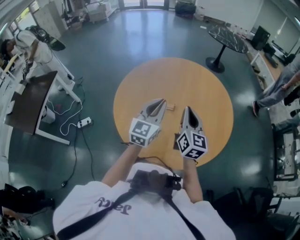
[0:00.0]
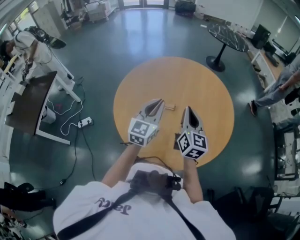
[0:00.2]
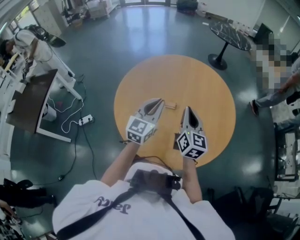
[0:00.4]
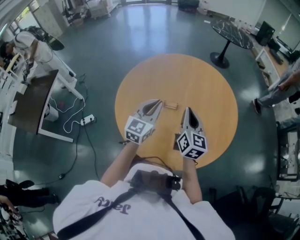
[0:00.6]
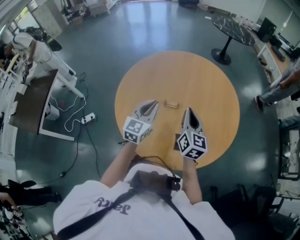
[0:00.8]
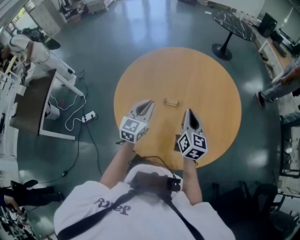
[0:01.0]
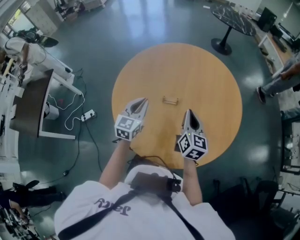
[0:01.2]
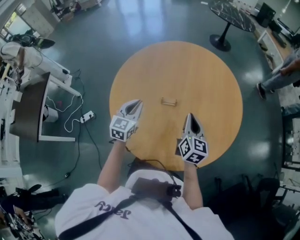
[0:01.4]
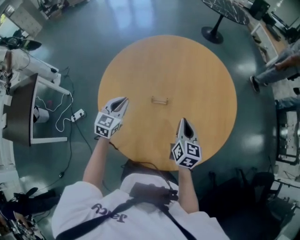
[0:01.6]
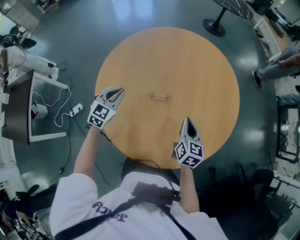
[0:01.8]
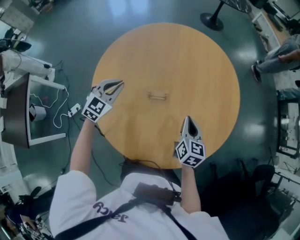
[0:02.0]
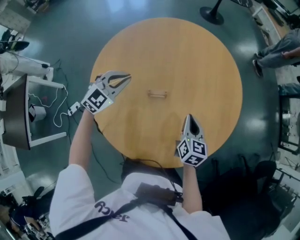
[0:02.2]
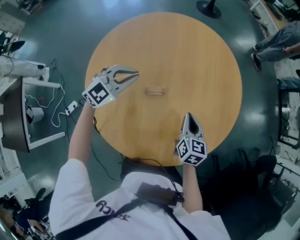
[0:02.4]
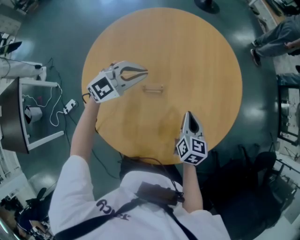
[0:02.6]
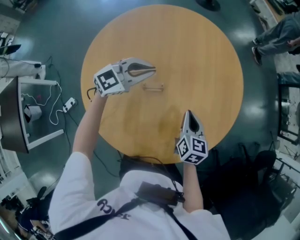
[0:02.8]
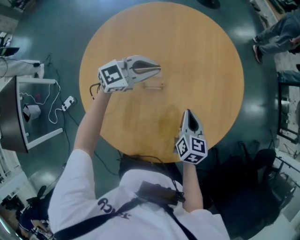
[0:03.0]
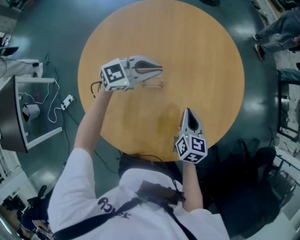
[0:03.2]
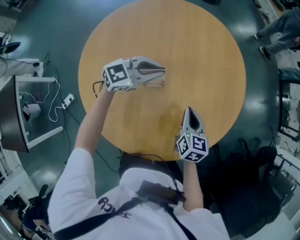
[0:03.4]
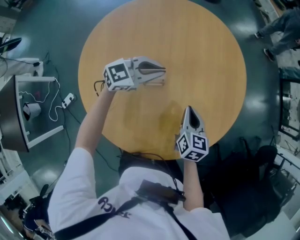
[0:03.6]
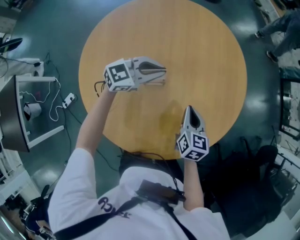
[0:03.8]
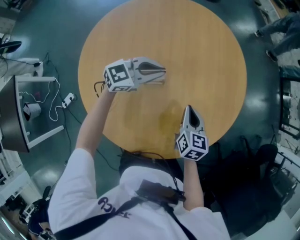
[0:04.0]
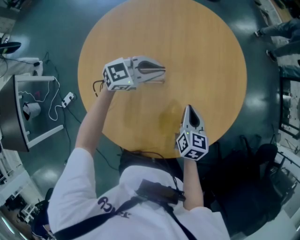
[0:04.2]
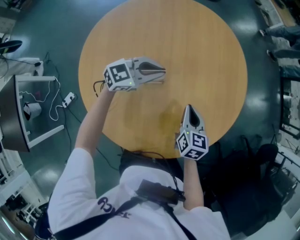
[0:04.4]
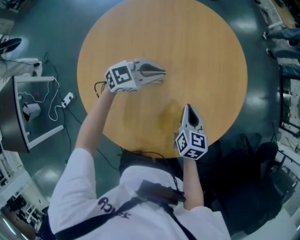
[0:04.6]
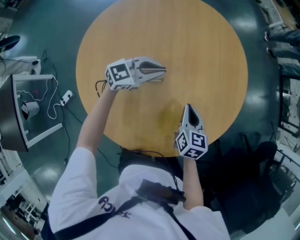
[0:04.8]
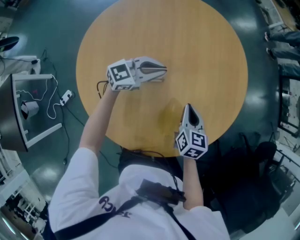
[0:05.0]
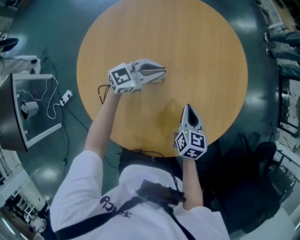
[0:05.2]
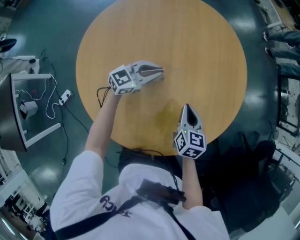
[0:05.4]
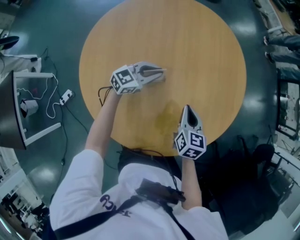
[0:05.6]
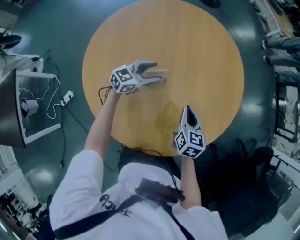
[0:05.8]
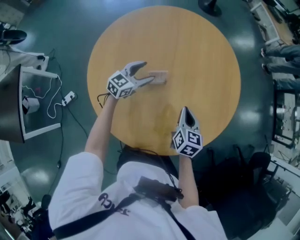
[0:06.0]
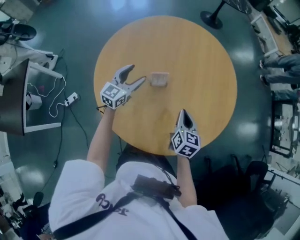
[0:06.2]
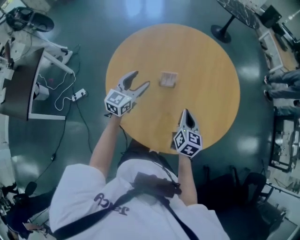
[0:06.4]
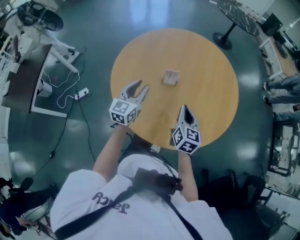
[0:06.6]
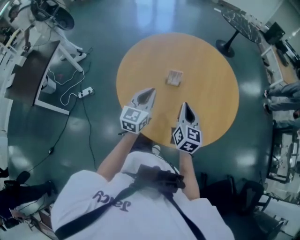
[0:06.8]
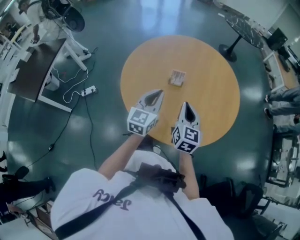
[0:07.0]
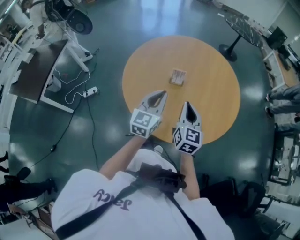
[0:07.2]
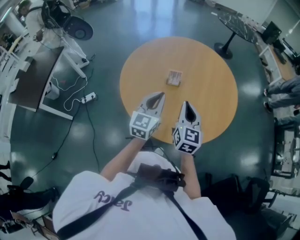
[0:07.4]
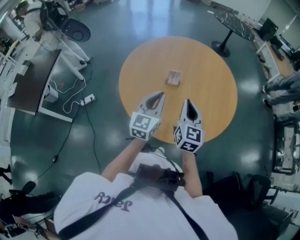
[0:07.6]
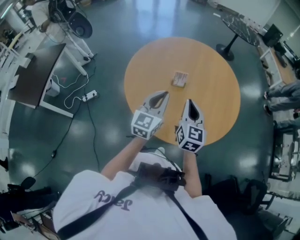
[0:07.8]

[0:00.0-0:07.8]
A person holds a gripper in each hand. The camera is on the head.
0:00.0 to 0:01.6: The right gripper is displaced downward by approximately 15 cm, and turns by some 20 degrees. The left gripper shifts some 20 cm downward and to the left, and changes its angle by roughly 30 degrees.
0:01.6 to 0:03.2: The right gripper shifts some 5 cm downward, while the left gripper ends up some 20 cm from where it was, and swivels some 60 degrees.
0:03.2 to 0:04.6: There are only small adjustments of the grippers.
0:04.6 to 0:06.2: The left gripper moves approximately 15 cm, rotates approximately 50 degrees, and opens up.
0:06.2 to 0:07.8: The left gripper moves backward and upward, approximately 25 cm, rotates roughly 20 degrees, and closes its fingers; the right gripper shifts some 20 cm upward, to the left and backward, and rotates about 30 degrees.

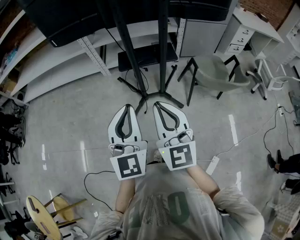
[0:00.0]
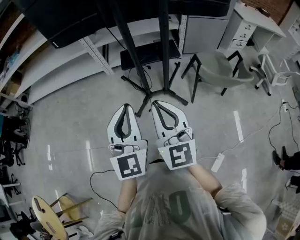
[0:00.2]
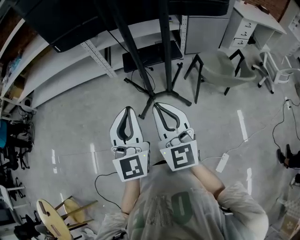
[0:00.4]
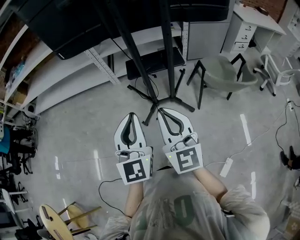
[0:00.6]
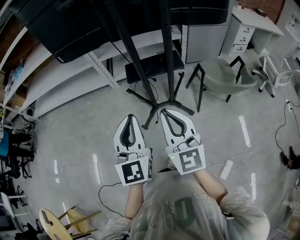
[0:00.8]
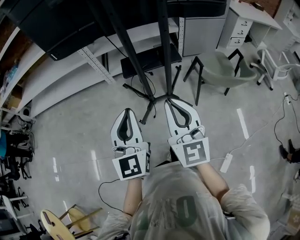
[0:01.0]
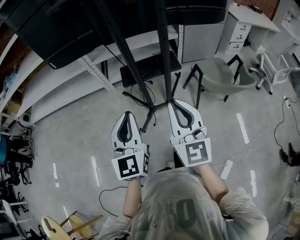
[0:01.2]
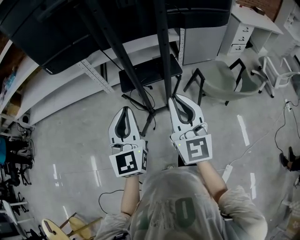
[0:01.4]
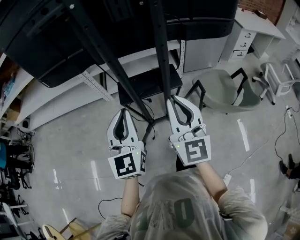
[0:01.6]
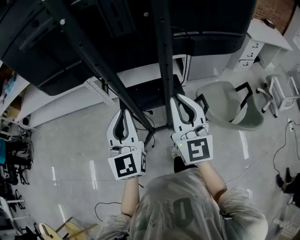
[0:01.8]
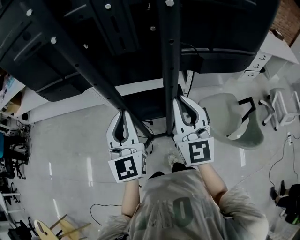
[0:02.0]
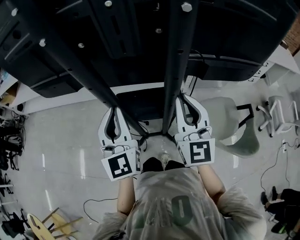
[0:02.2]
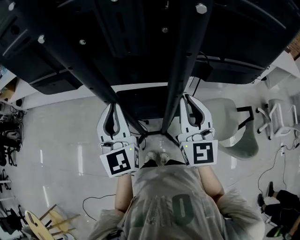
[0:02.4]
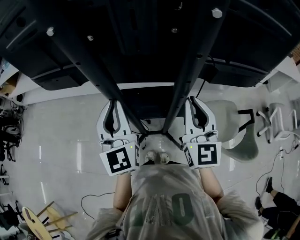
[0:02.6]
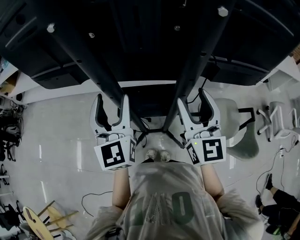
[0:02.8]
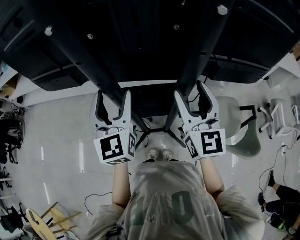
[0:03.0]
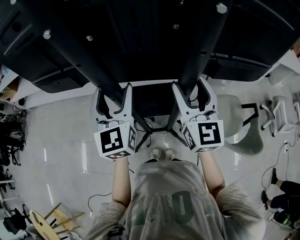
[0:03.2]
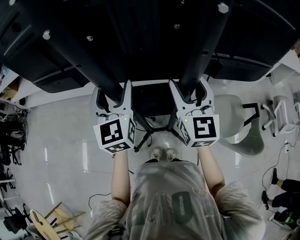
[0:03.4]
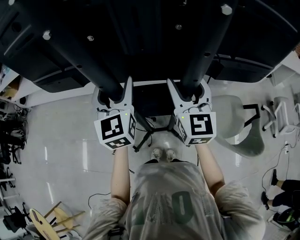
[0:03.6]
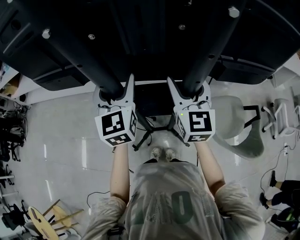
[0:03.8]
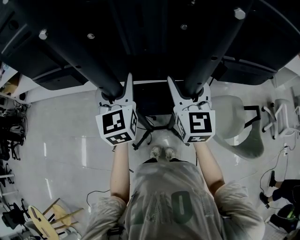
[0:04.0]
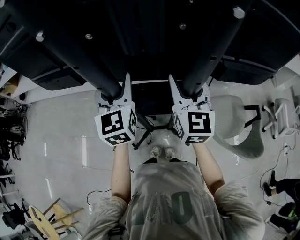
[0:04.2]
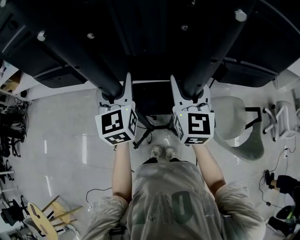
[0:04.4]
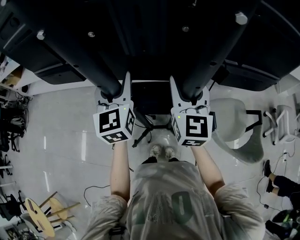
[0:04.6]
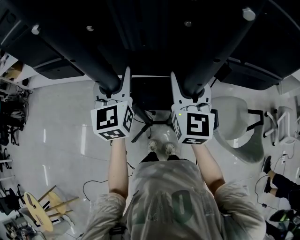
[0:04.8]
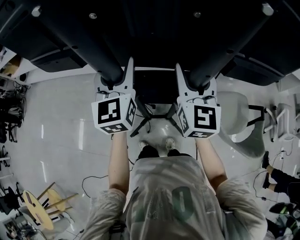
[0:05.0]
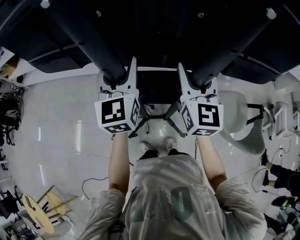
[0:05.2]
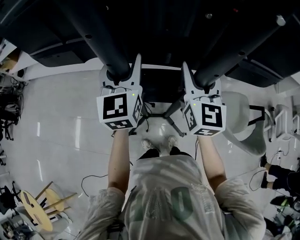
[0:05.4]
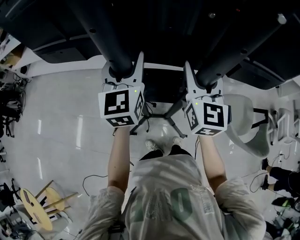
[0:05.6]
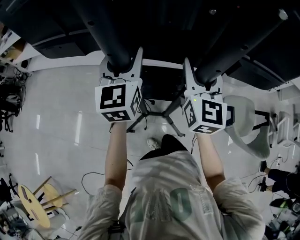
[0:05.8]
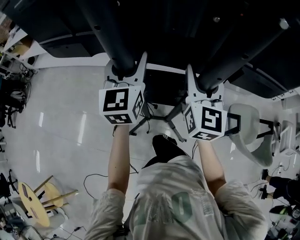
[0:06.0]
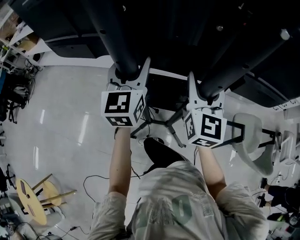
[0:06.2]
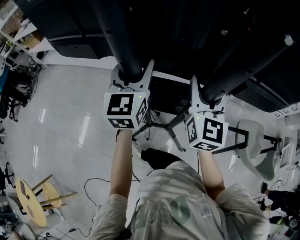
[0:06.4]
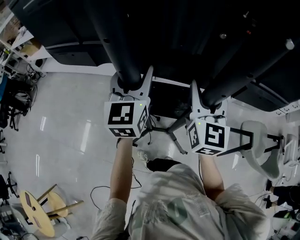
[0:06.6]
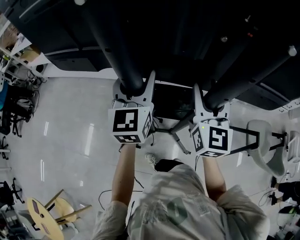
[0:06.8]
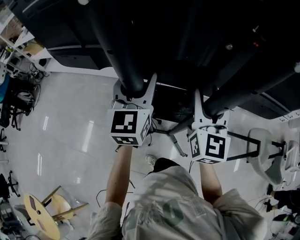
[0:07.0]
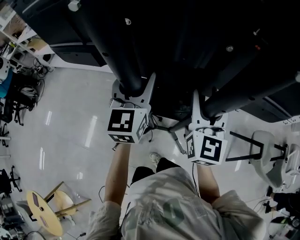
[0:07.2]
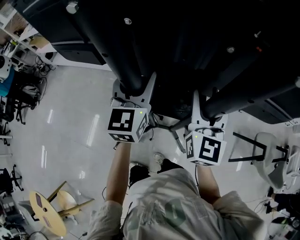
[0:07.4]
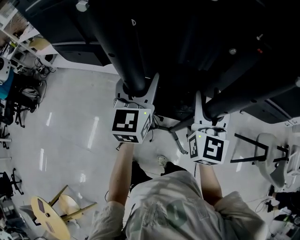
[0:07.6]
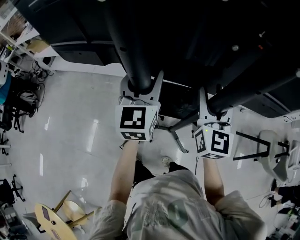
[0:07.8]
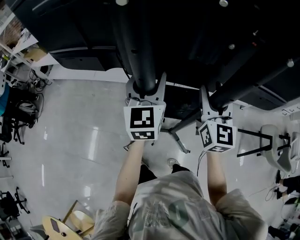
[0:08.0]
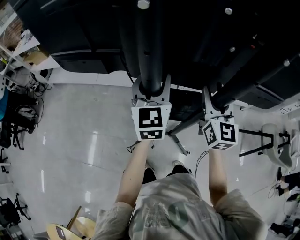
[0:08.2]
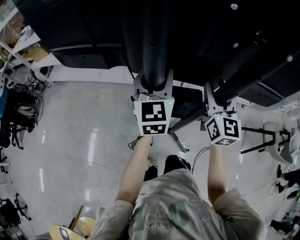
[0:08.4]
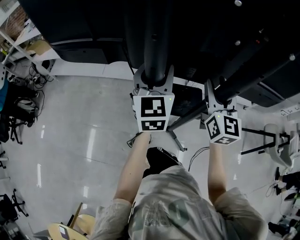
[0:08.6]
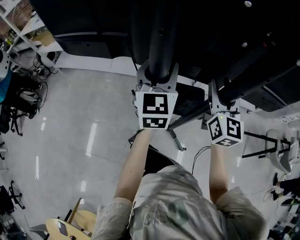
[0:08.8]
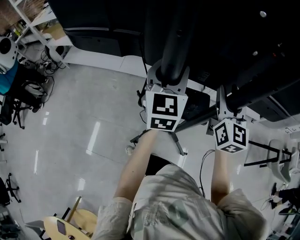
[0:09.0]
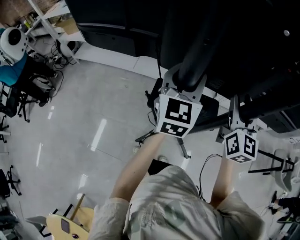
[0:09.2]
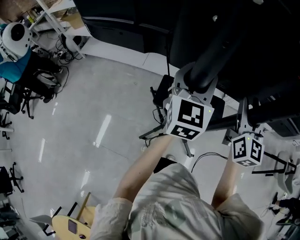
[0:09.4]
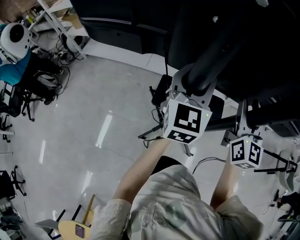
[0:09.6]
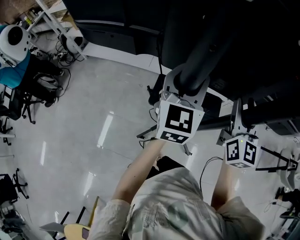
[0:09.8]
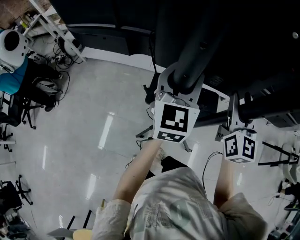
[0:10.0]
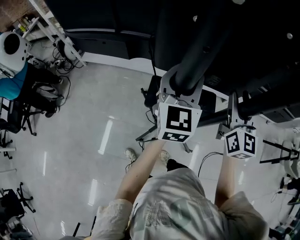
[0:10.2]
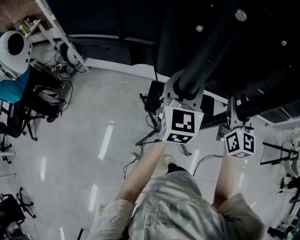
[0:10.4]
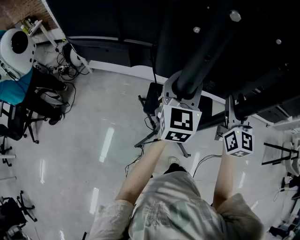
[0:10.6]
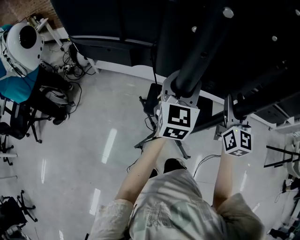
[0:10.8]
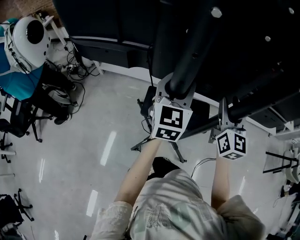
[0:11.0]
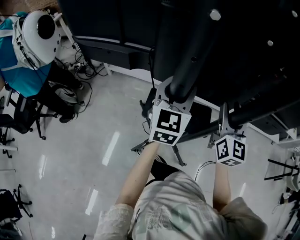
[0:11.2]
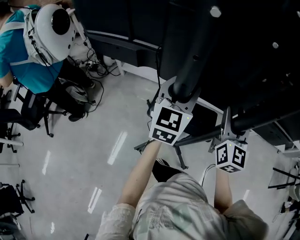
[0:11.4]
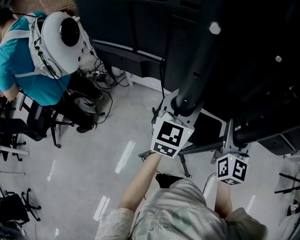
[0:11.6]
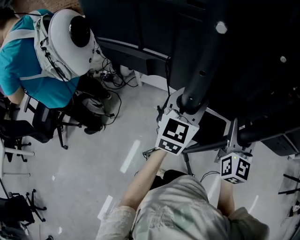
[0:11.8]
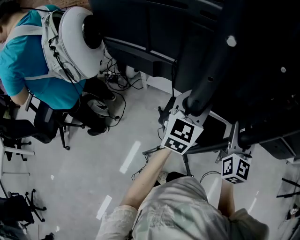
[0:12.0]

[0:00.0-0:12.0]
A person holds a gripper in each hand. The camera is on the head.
0:00.0 to 0:01.6: The left gripper goes some 20 cm forward; the right gripper goes about 25 cm forward and to the right.
0:01.6 to 0:03.0: The two grippers go roughly 25 cm forward. The left gripper opens up. The right gripper opens up.
0:03.0 to 0:04.4: The grippers both shift forward by approximately 5 cm.
0:04.4 to 0:06.0: The grippers both shift to the left by approximately 20 cm.
0:06.0 to 0:07.6: The grippers both shift to the left by some 35 cm.
0:07.6 to 0:09.0: Both grippers travel together to the left, approximately 30 cm.
0:09.0 to 0:10.4: Both grippers move to the left, some 35 cm.
0:10.4 to 0:12.0: The two grippers travel together, to the left, approximately 50 cm.

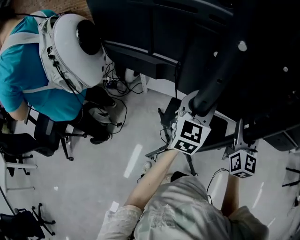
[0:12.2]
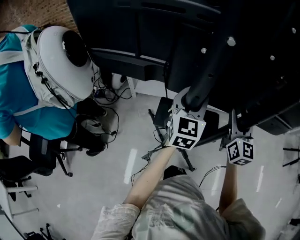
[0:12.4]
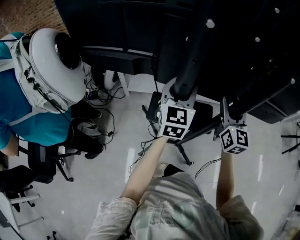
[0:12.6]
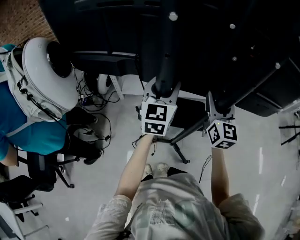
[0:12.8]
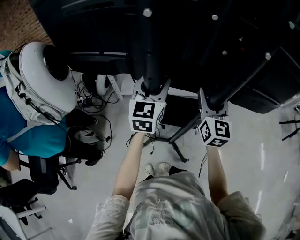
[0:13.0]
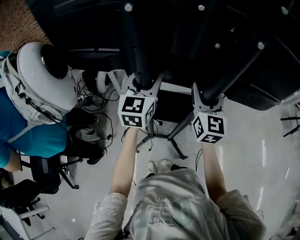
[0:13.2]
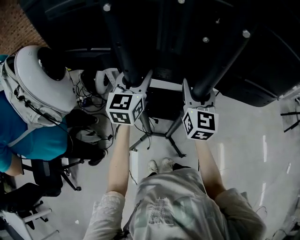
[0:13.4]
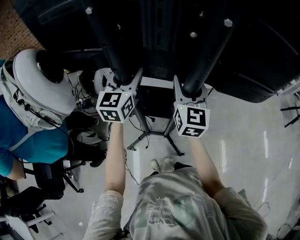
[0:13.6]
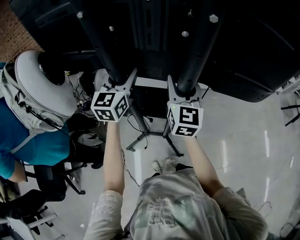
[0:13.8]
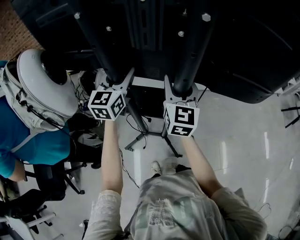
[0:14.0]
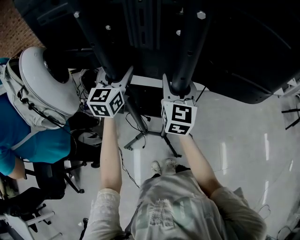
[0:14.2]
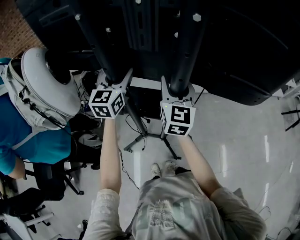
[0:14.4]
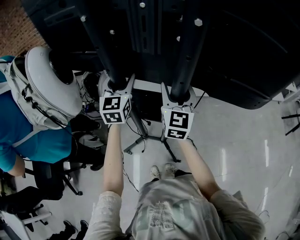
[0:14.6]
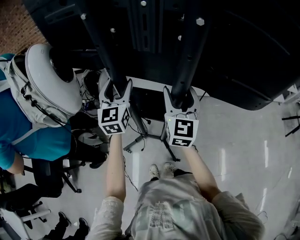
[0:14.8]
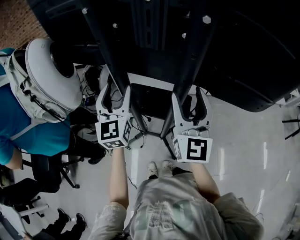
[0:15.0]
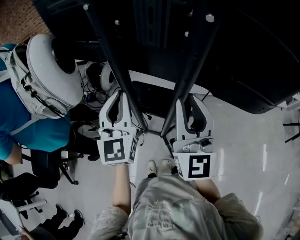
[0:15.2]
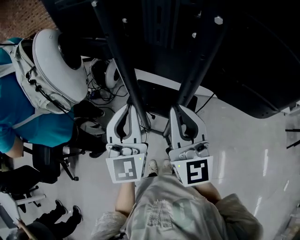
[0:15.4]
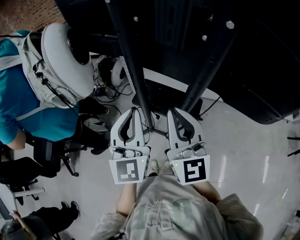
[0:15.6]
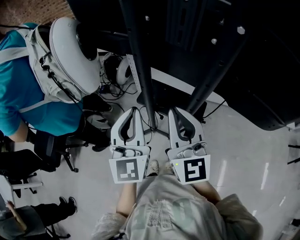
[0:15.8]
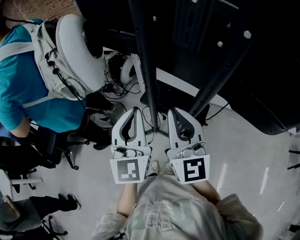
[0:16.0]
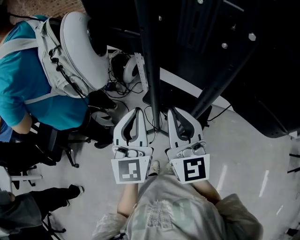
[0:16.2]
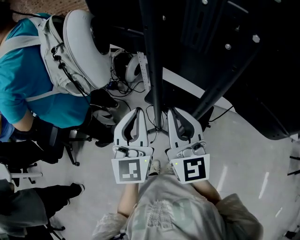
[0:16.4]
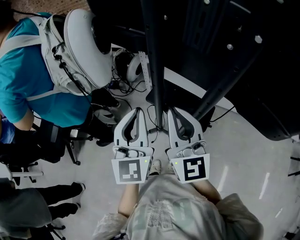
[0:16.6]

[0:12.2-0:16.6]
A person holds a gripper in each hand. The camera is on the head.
0:12.2 to 0:13.6: The grippers both shift to the left by approximately 20 cm.
0:13.6 to 0:15.2: The right gripper travels backward and upward by approximately 15 cm. Meanwhile the left gripper moves backward, approximately 15 cm, swivels some 20 degrees, and closes up.
0:15.2 to 0:16.6: The left gripper travels backward by roughly 5 cm. The right gripper travels to the left by some 10 cm, swivels approximately 30 degrees, and closes its fingers.
